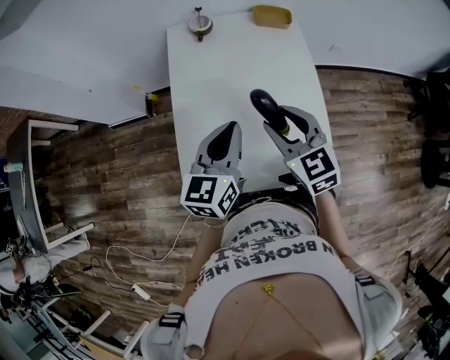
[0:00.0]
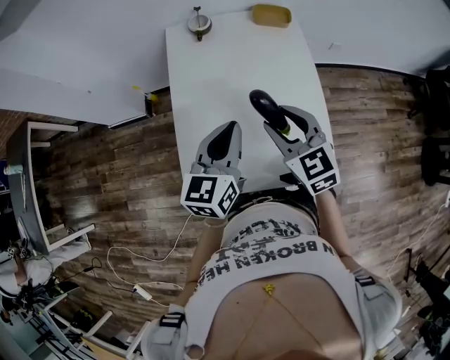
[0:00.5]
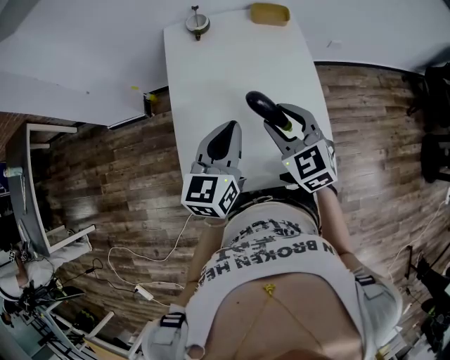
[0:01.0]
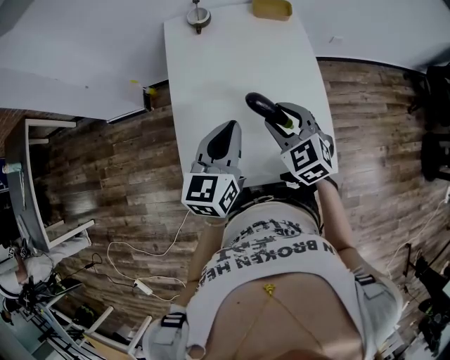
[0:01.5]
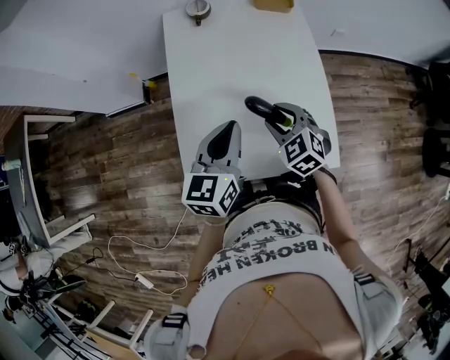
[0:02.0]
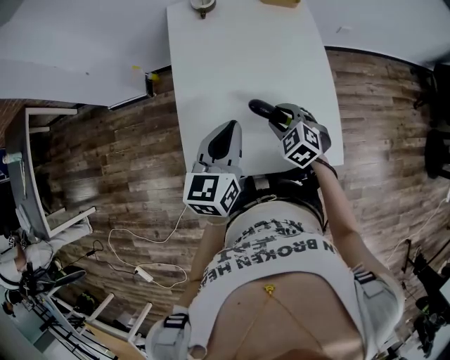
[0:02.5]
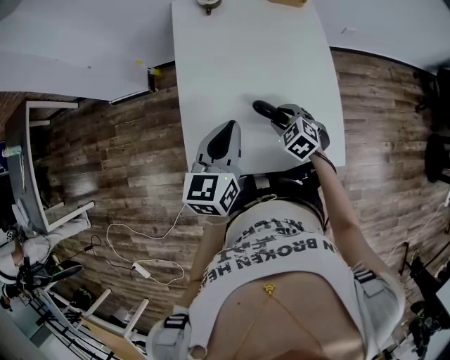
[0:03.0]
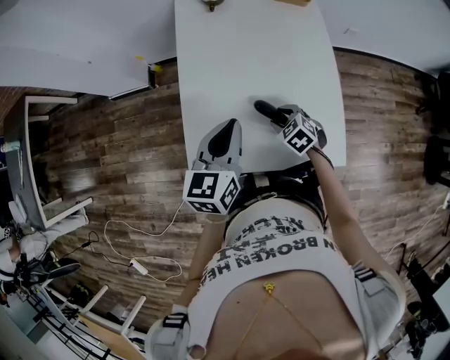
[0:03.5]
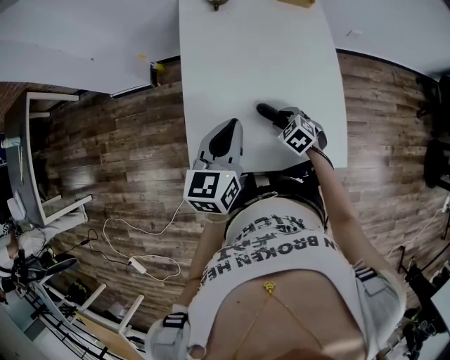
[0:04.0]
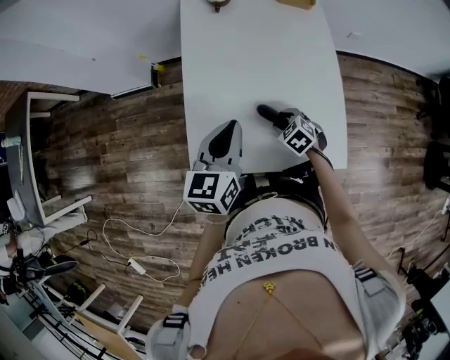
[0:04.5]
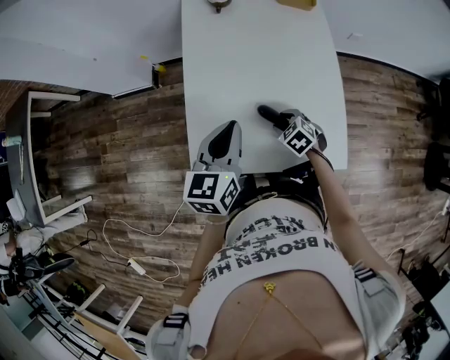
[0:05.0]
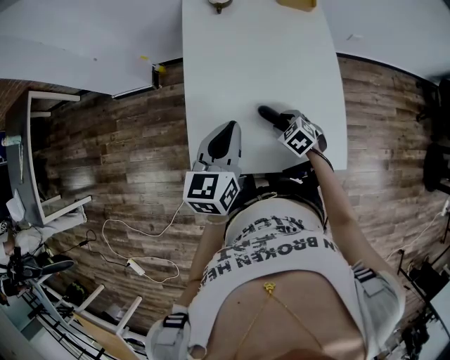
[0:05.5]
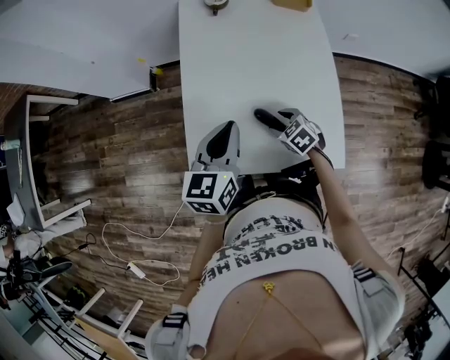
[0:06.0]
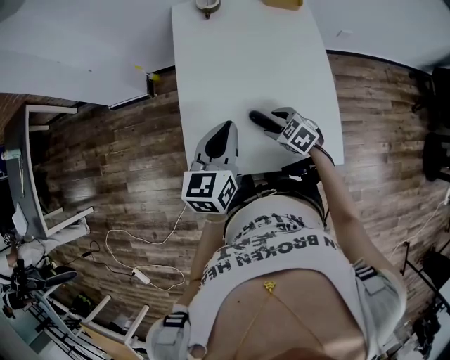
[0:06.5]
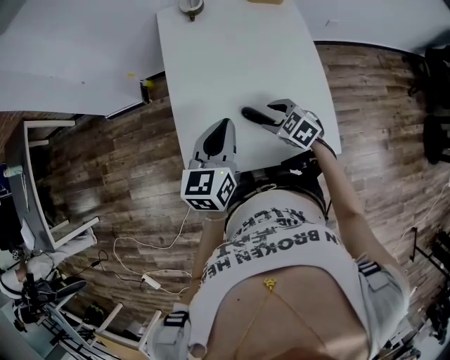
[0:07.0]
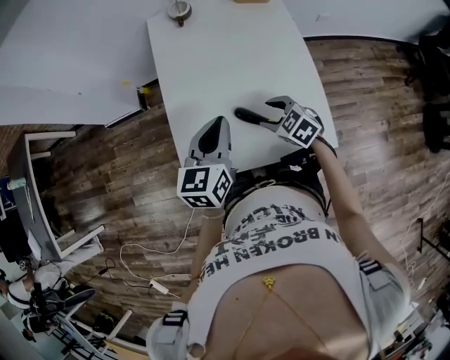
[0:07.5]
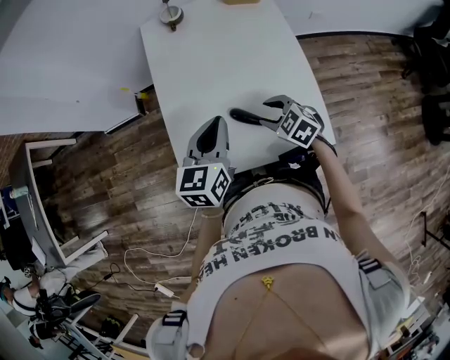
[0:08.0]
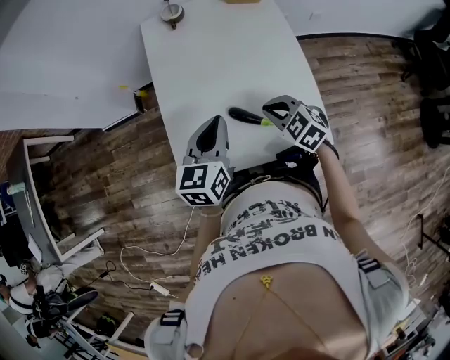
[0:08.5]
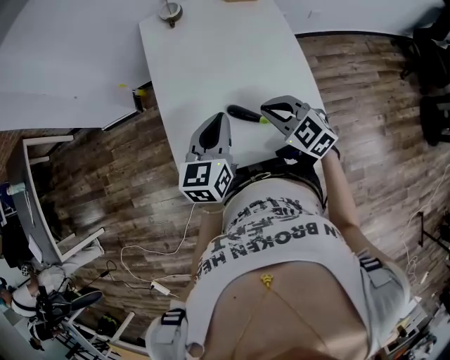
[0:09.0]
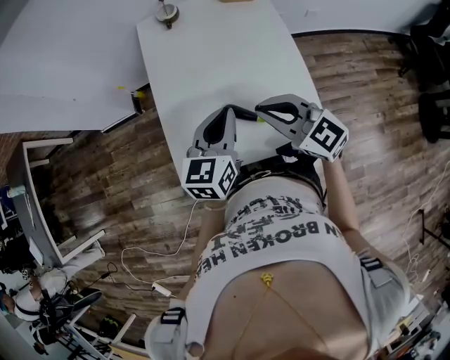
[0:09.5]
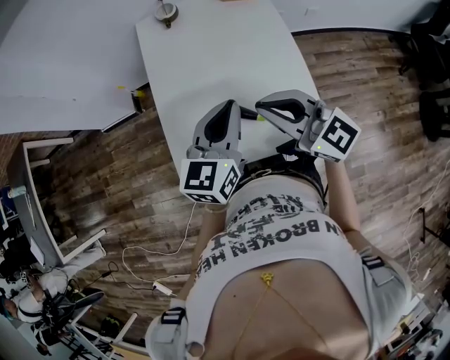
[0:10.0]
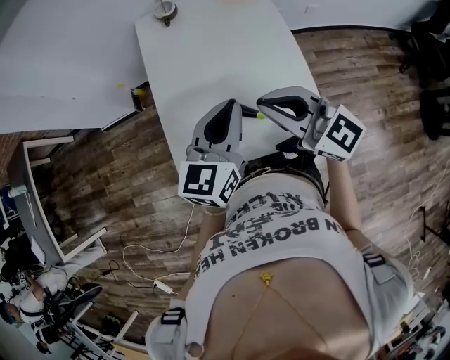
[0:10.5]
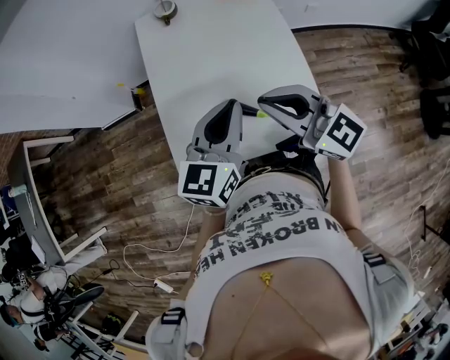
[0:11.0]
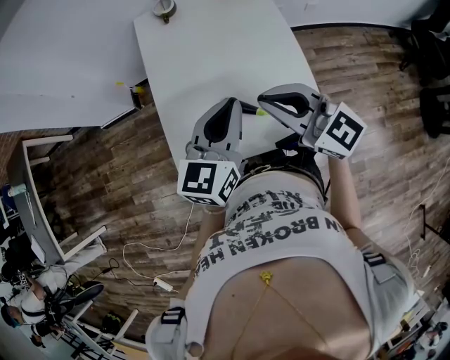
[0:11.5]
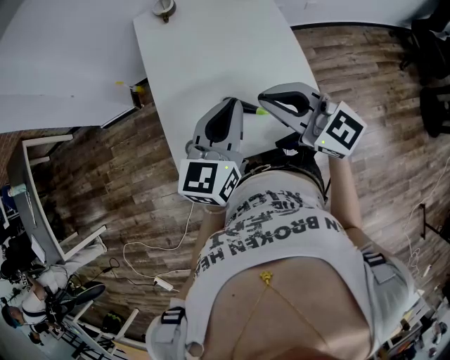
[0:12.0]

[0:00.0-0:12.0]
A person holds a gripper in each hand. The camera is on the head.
0.0 to 2.0 s: The right gripper moves downward, approximately 10 cm, and rotates some 20 degrees.
2.0 to 4.0 s: The right gripper goes some 15 cm downward, and rotates some 20 degrees.
4.0 to 6.0 s: The grippers make only small movements.
6.0 to 8.0 s: The right gripper travels upward by roughly 10 cm.
8.0 to 10.0 s: The left gripper heads upward, covering some 5 cm, while the right gripper shifts roughly 20 cm upward, tips its fingers upward by roughly 50 degrees, and closes.
10.0 to 12.0 s: The grippers make only small movements.

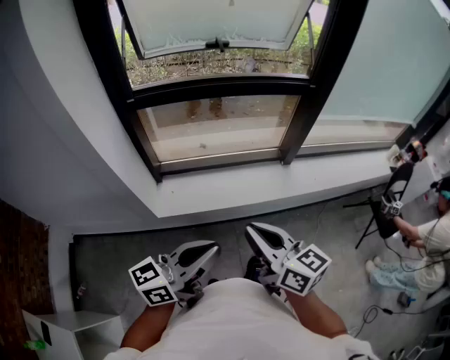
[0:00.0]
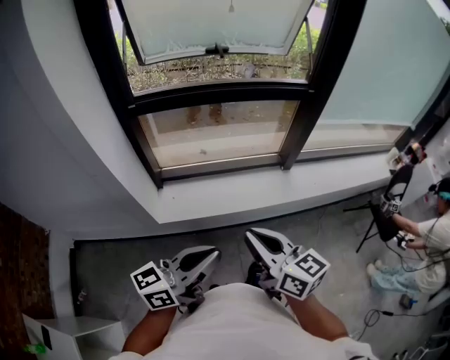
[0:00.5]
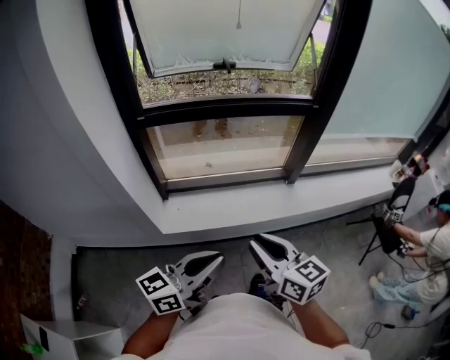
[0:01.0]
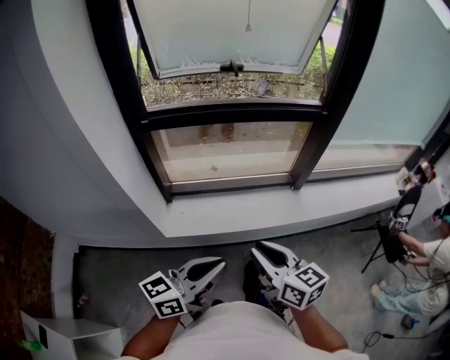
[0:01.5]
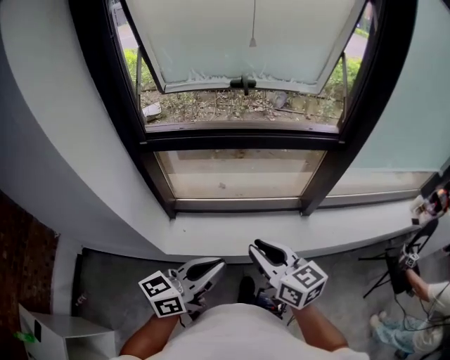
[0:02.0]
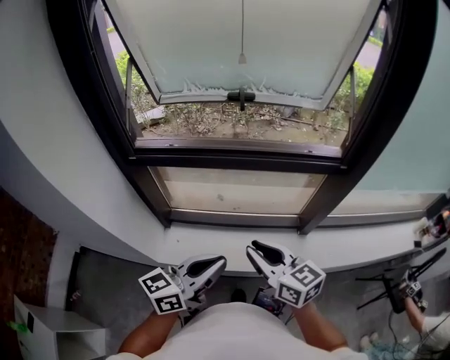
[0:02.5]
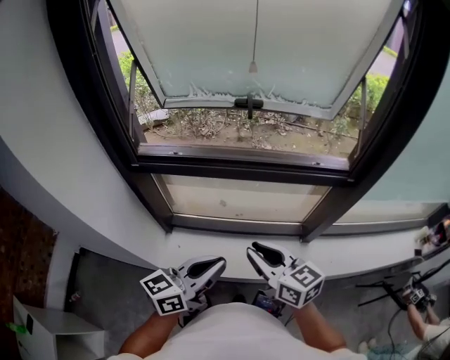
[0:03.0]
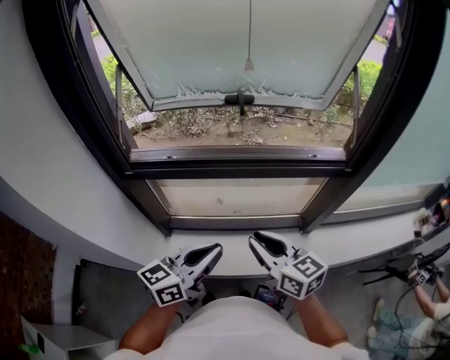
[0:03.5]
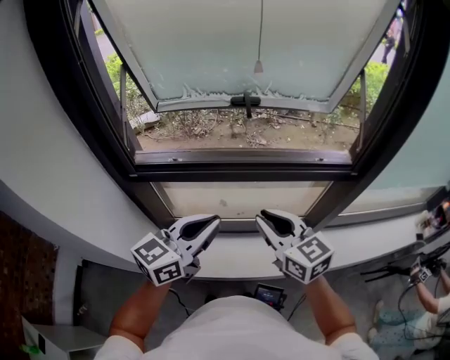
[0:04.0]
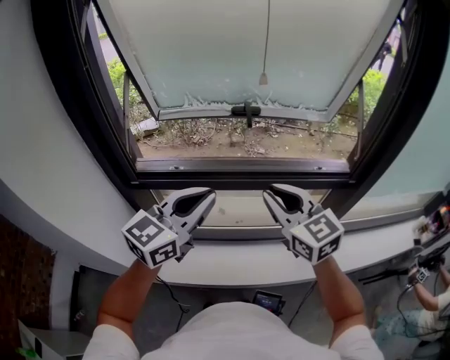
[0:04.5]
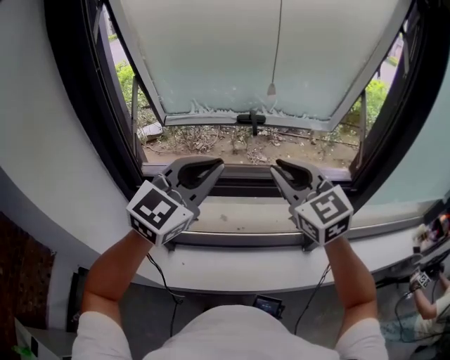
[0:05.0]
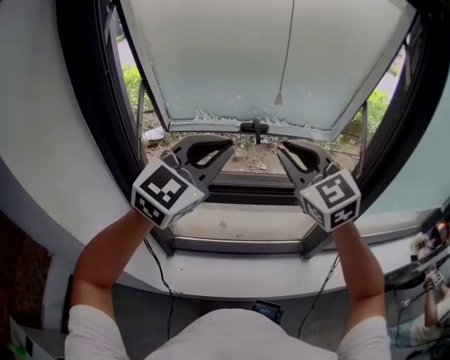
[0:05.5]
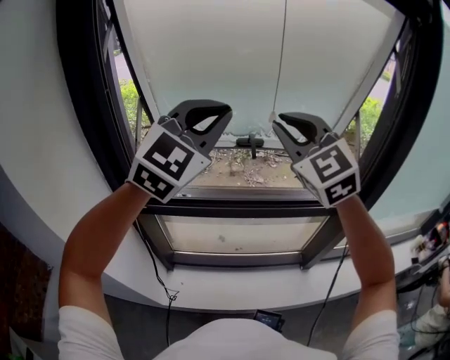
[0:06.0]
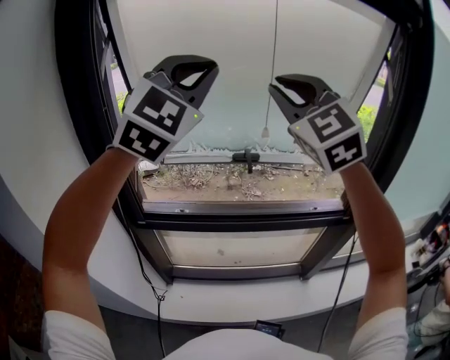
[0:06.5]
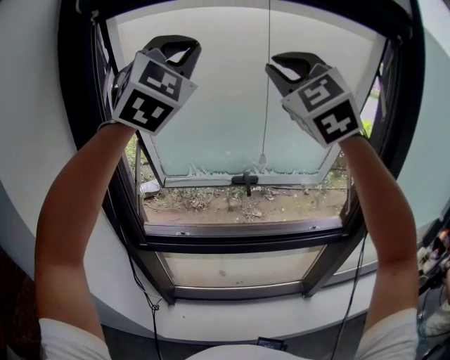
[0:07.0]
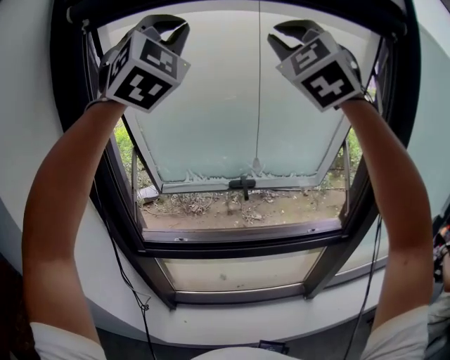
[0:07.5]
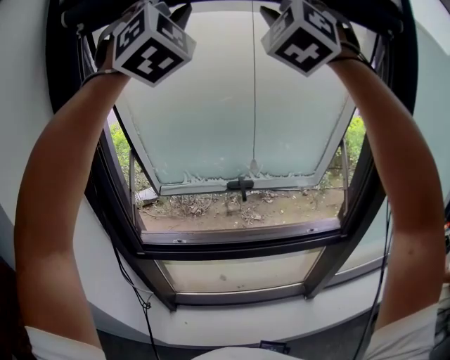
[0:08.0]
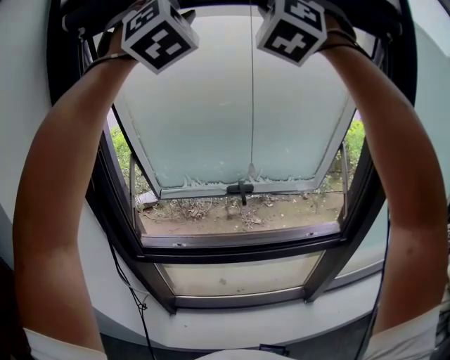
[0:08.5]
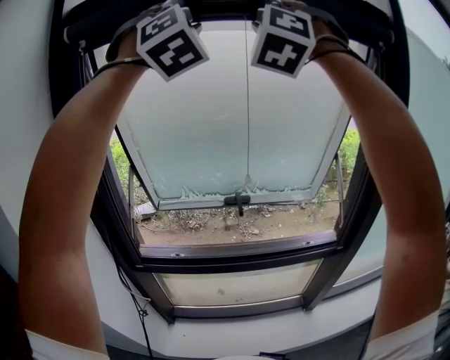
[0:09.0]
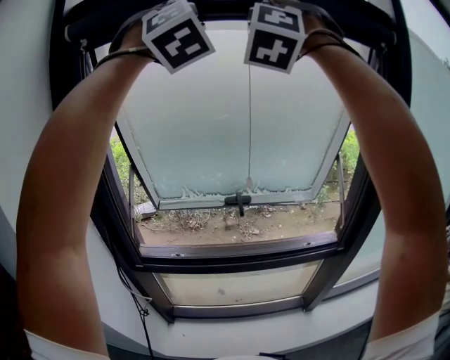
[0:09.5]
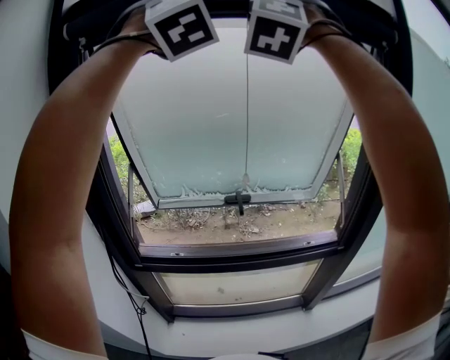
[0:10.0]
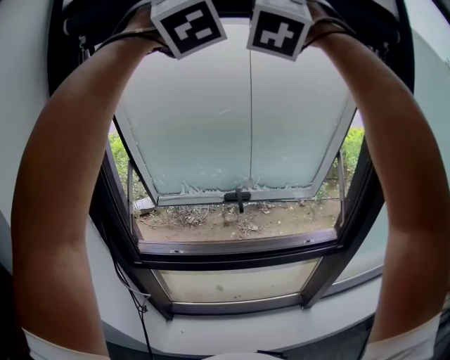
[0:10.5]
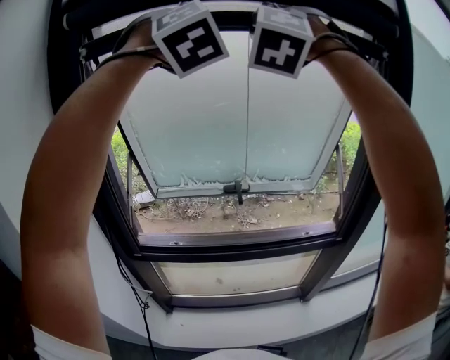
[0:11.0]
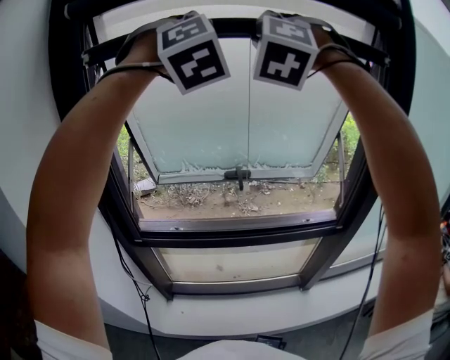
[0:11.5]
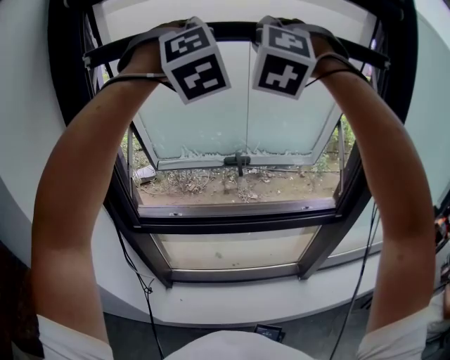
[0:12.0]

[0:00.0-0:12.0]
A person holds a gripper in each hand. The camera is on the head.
0.0 to 2.0 s: Both grippers move forward, approximately 15 cm.
2.0 to 4.0 s: The grippers both shift forward by some 25 cm.
4.0 to 6.0 s: The grippers both shift upward and forward by approximately 30 cm. The right gripper rolls counterclockwise, seen from behind, by some 50 degrees. The left gripper twists approximately 60 degrees clockwise, seen from behind.
6.0 to 8.0 s: The two grippers go approximately 35 cm upward. The left gripper changes its angle by about 50 degrees; the right gripper rotates some 50 degrees.
8.0 to 10.0 s: There are only small adjustments of the grippers.
10.0 to 12.0 s: The two grippers go roughly 15 cm downward.

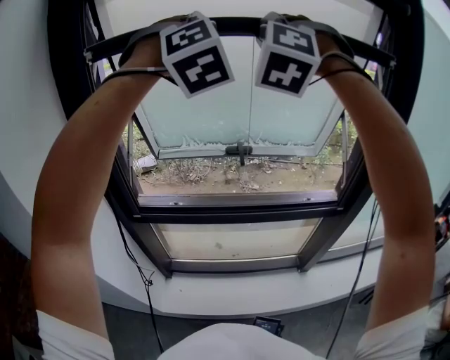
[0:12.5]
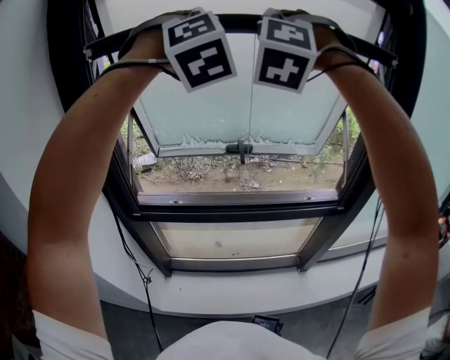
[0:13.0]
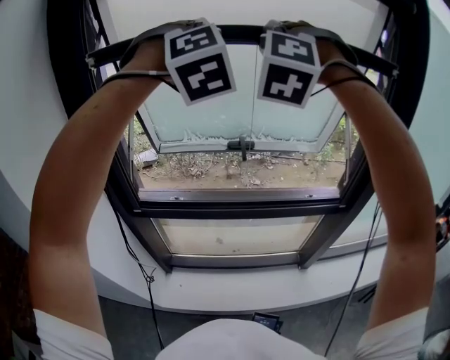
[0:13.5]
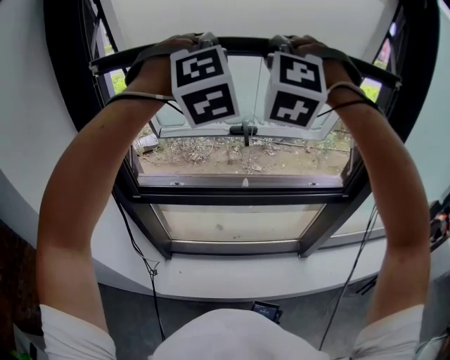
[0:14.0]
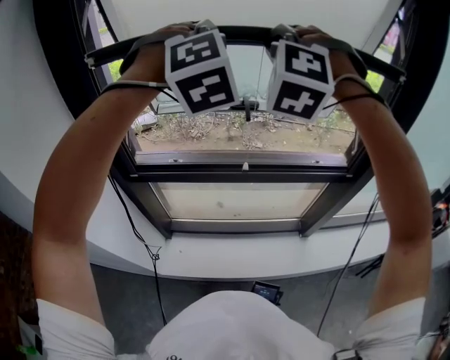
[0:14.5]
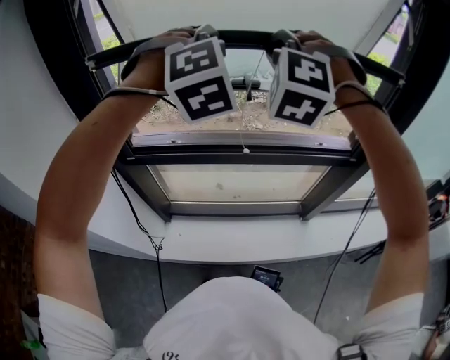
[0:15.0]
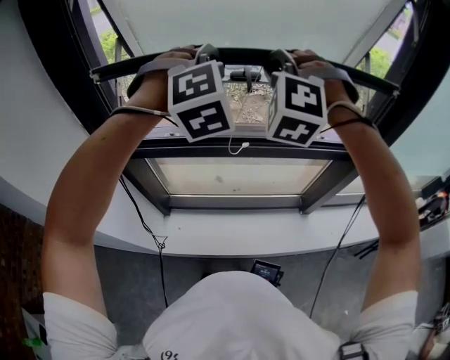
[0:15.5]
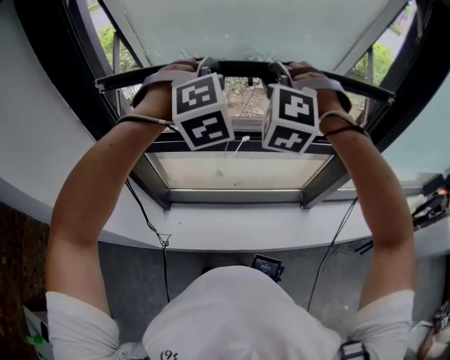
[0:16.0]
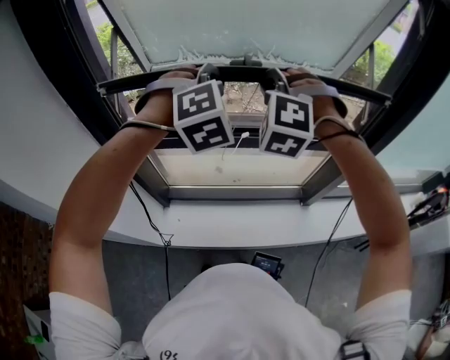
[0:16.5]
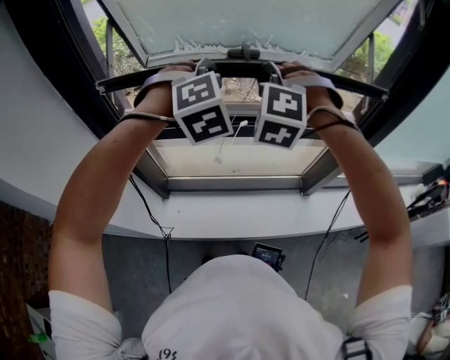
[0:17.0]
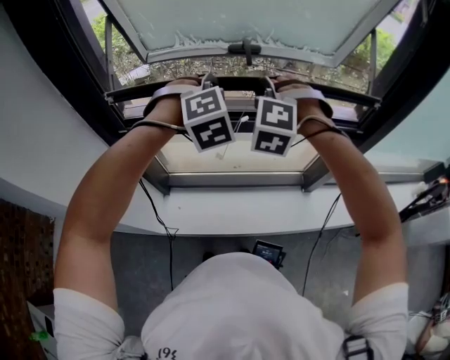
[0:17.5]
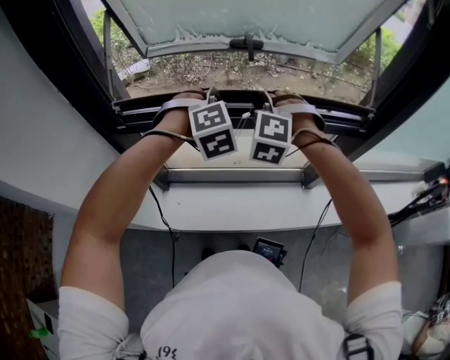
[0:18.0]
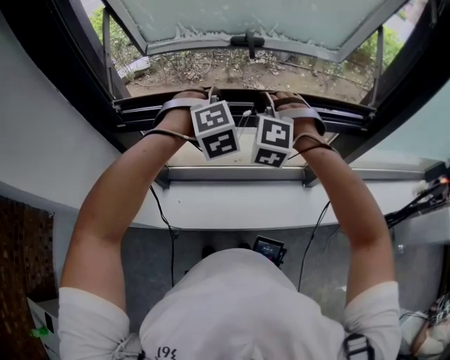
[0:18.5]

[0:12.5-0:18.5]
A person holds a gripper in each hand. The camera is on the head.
12.5 to 14.5 s: The two grippers go approximately 15 cm downward.
14.5 to 16.5 s: Both grippers travel together downward, about 20 cm.
16.5 to 18.5 s: The grippers both shift downward by approximately 15 cm.
